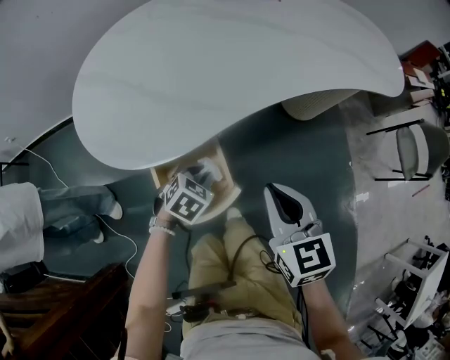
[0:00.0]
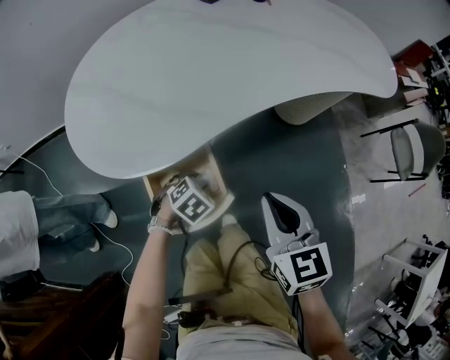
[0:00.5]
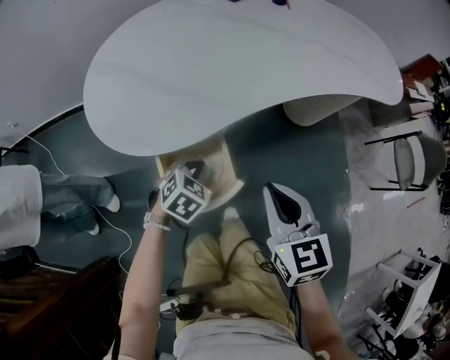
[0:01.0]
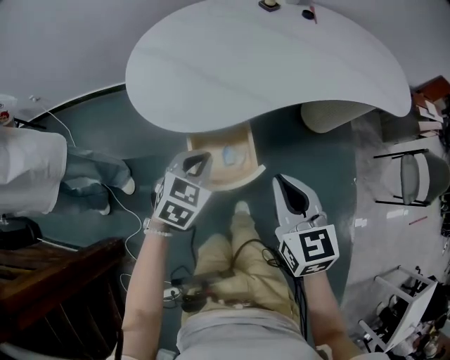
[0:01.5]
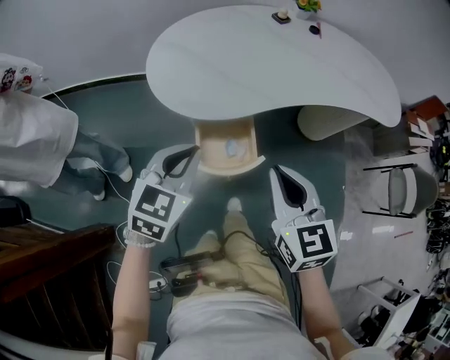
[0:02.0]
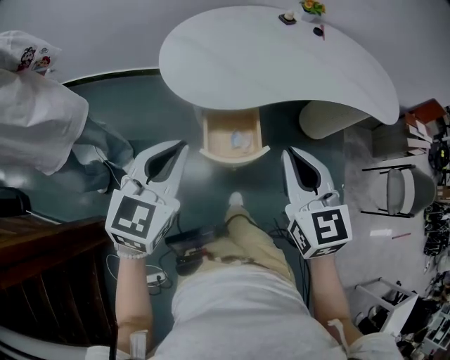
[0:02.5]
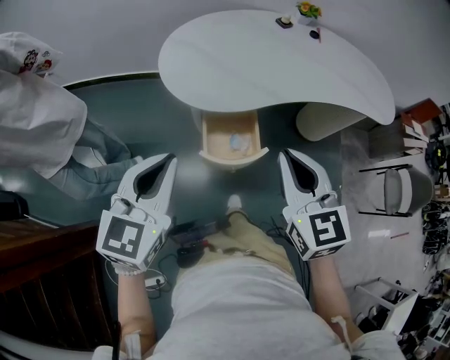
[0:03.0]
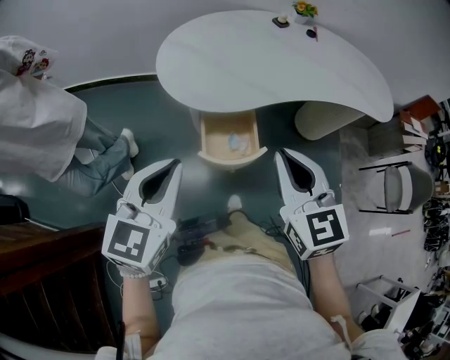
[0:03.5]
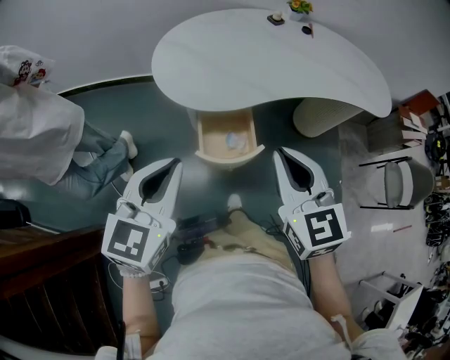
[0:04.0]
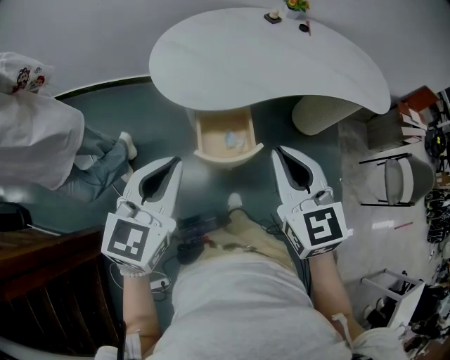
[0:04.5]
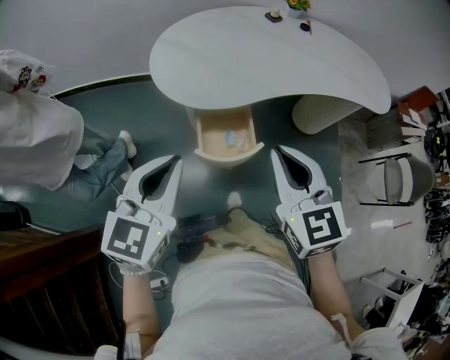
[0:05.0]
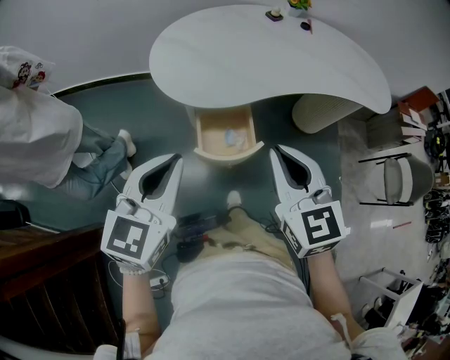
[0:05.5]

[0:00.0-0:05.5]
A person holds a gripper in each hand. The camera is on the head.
0:00.0 to 0:02.0: The right gripper is displaced upward, backward and to the left by roughly 20 cm, while the left gripper goes some 30 cm upward, and angles its fingers upward, by about 30 degrees.
0:02.0 to 0:03.5: The left gripper heads backward, upward and to the left, covering approximately 15 cm; the right gripper is displaced upward by approximately 5 cm.
0:03.5 to 0:05.5: The grippers stay close to where they were, moving slightly.

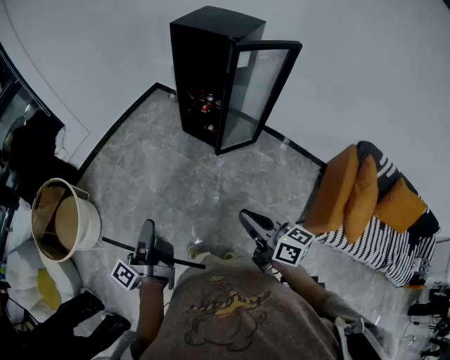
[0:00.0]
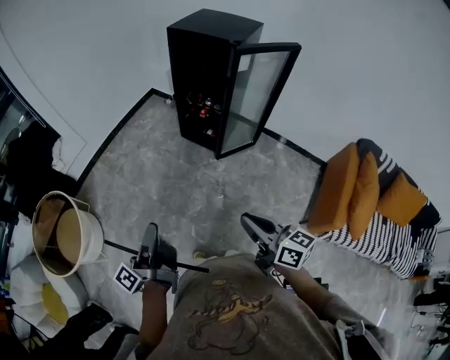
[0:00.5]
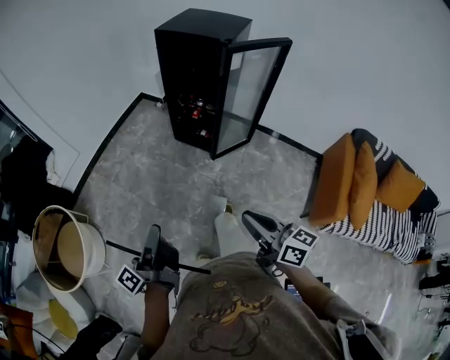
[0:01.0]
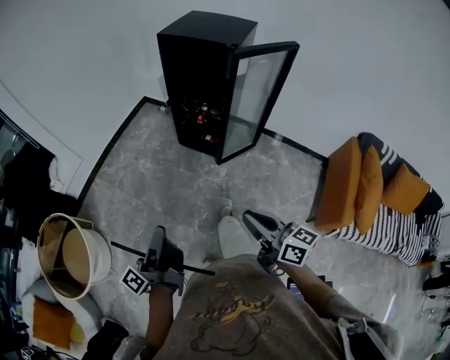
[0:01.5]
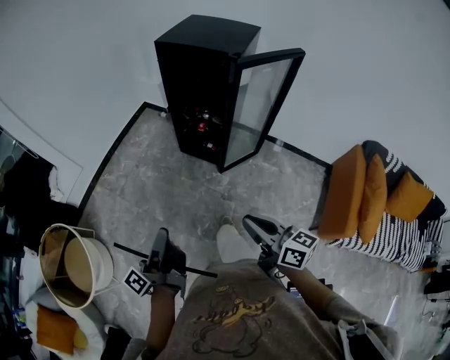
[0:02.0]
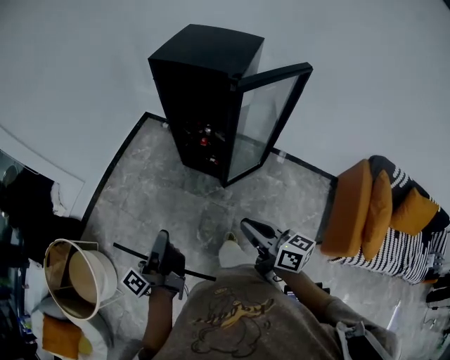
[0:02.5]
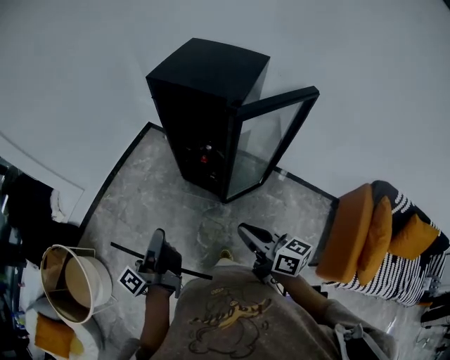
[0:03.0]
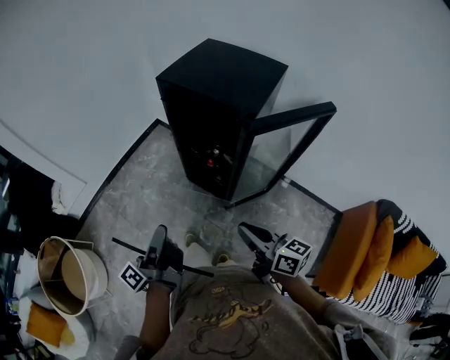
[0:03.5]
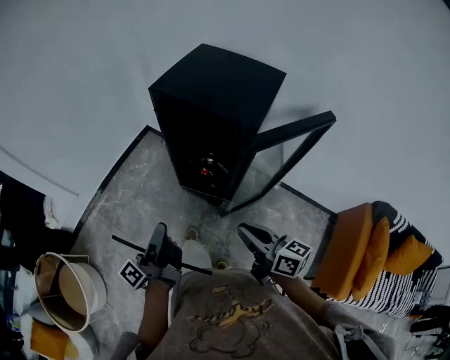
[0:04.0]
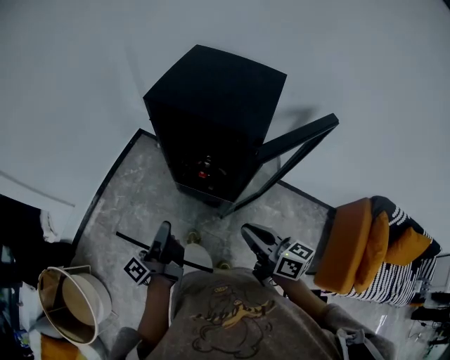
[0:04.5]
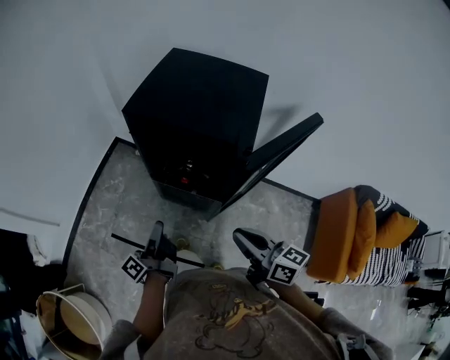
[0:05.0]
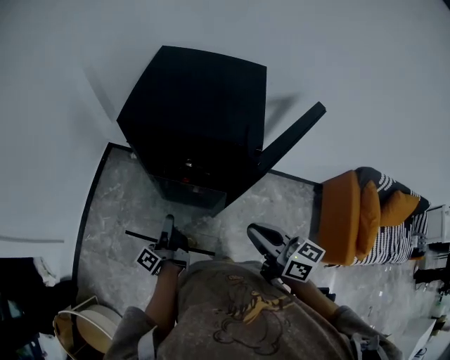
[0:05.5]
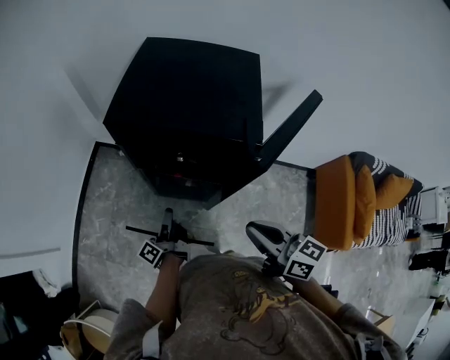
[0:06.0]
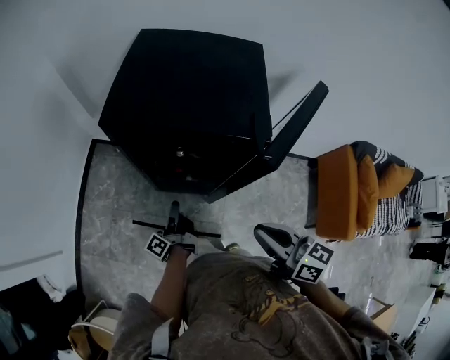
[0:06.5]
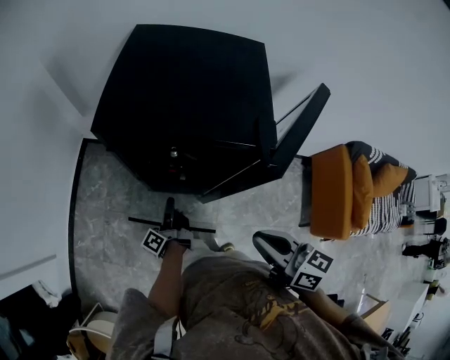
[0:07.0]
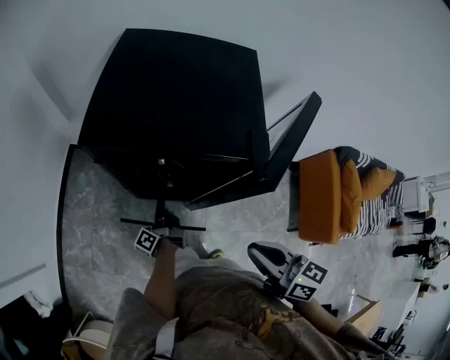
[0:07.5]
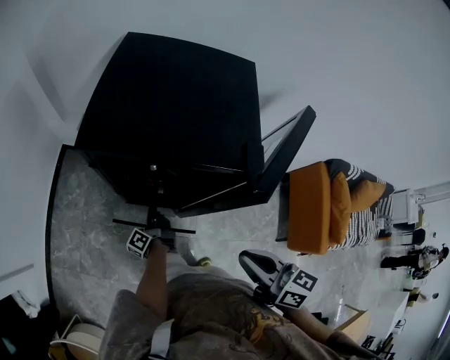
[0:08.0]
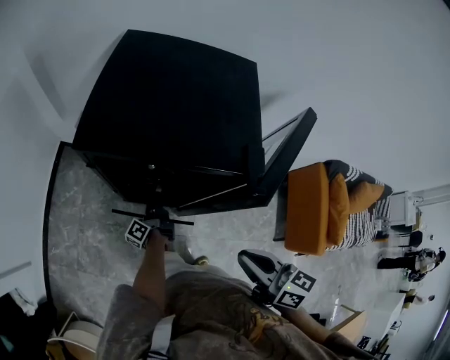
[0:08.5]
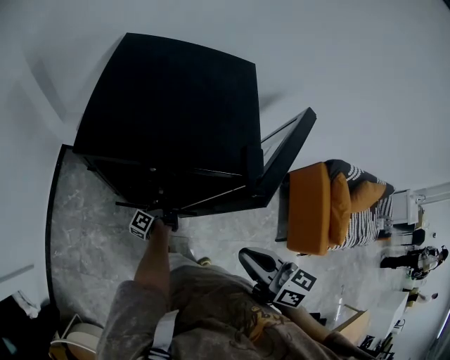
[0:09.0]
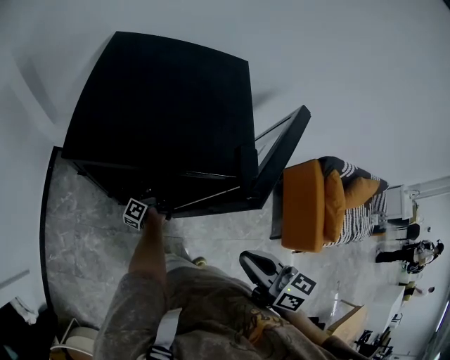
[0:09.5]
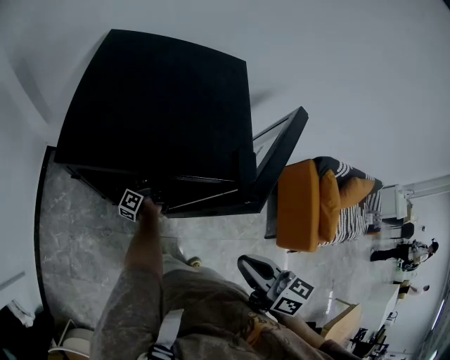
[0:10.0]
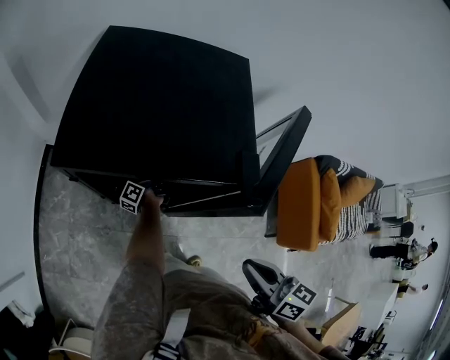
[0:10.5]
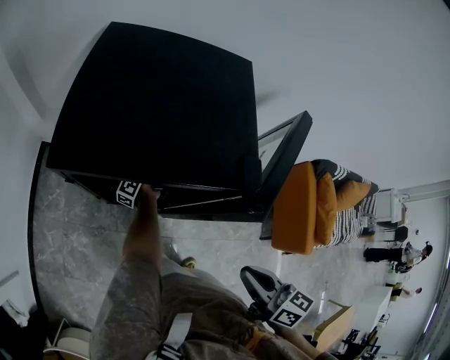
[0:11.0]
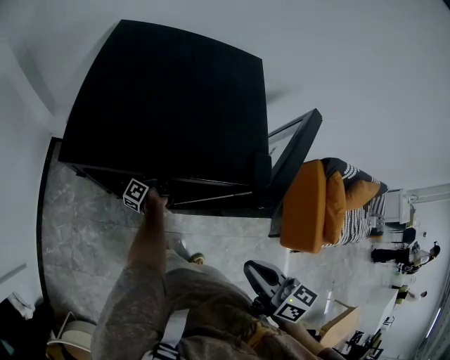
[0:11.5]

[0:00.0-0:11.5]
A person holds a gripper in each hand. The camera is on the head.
0:00.0 to 0:02.0: The right gripper shifts by approximately 15 cm.
0:02.0 to 0:04.0: The right gripper shifts by some 30 cm.
0:04.0 to 0:06.0: The right gripper shifts by approximately 10 cm, and rotates about 20 degrees.

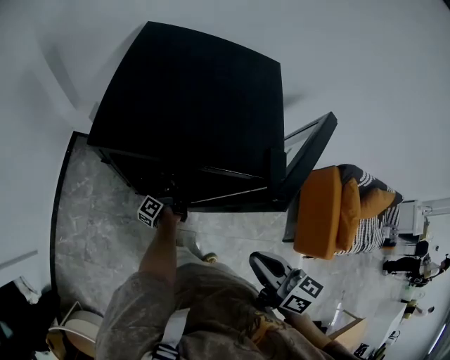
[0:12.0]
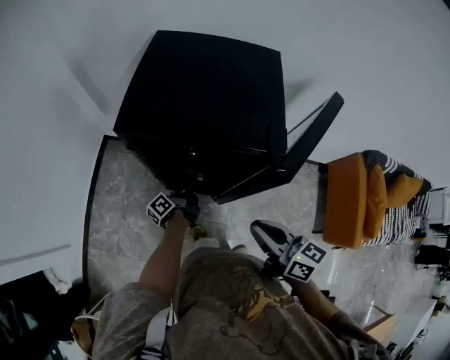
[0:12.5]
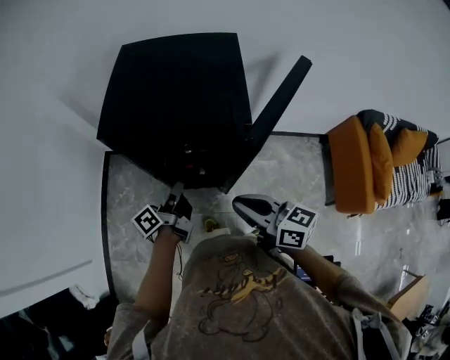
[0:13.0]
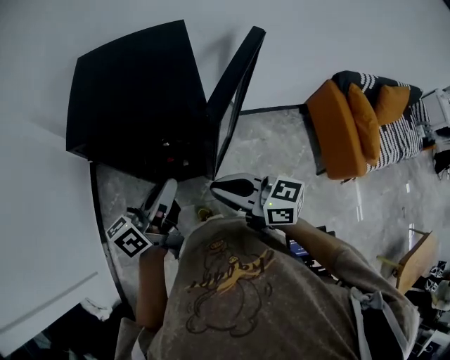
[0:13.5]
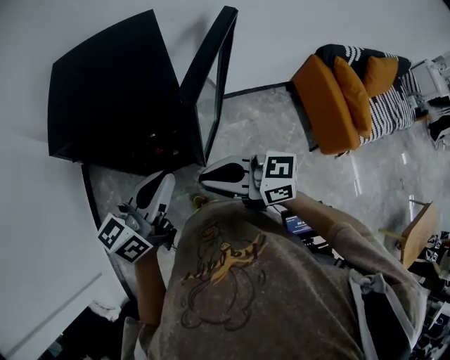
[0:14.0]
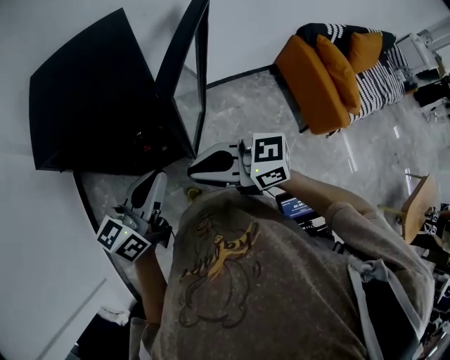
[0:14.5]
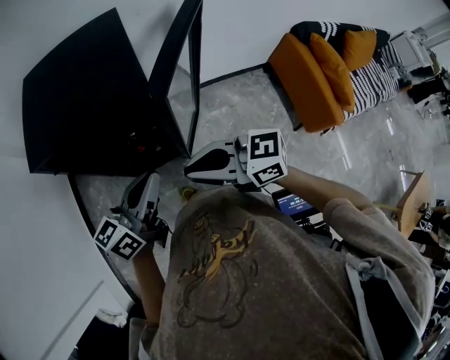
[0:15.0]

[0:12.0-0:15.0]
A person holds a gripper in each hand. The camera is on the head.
0:12.0 to 0:13.5: The right gripper changes its angle by approximately 20 degrees.

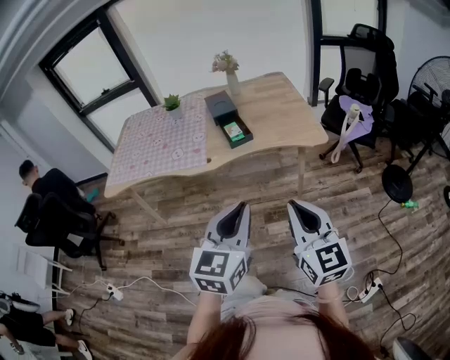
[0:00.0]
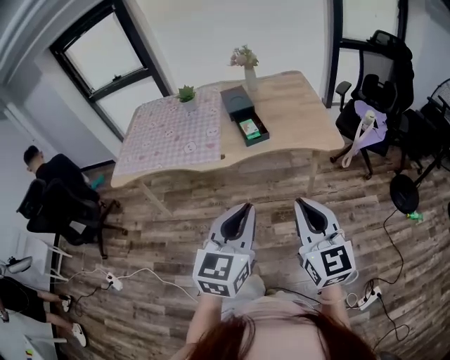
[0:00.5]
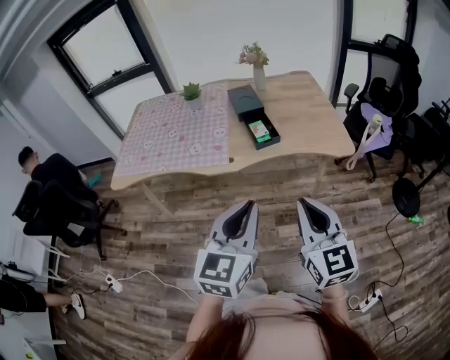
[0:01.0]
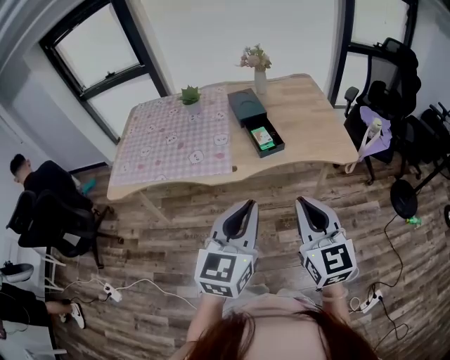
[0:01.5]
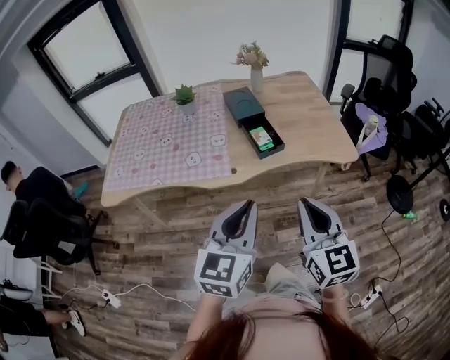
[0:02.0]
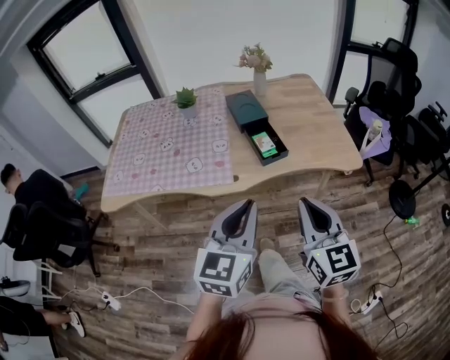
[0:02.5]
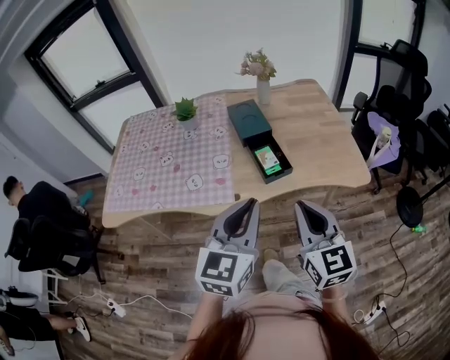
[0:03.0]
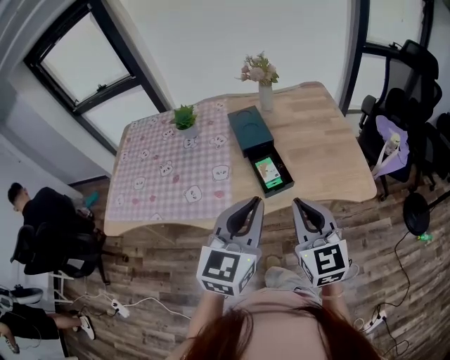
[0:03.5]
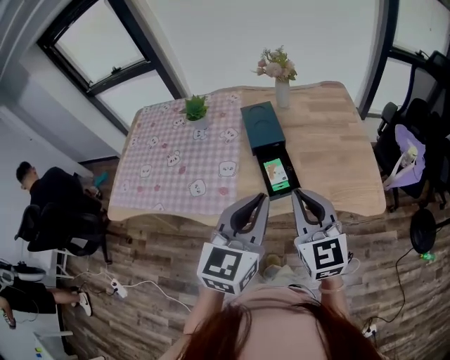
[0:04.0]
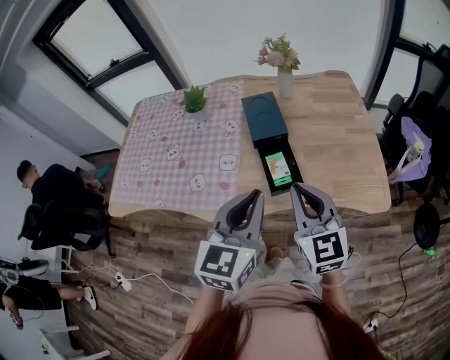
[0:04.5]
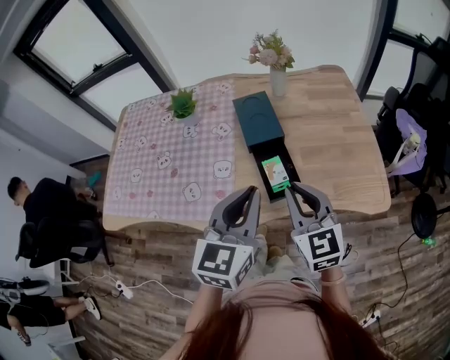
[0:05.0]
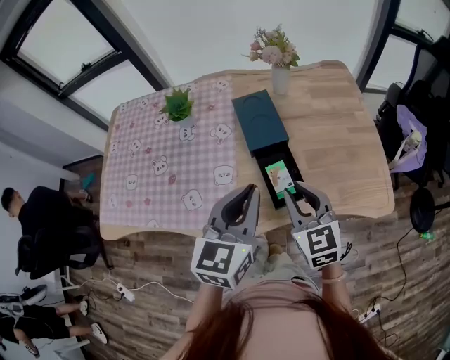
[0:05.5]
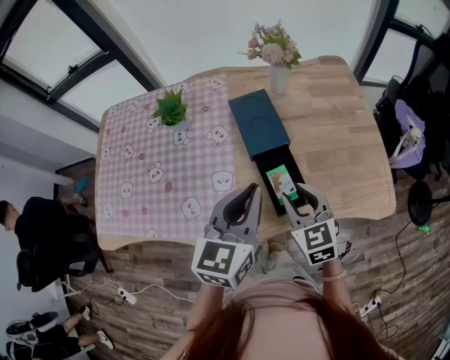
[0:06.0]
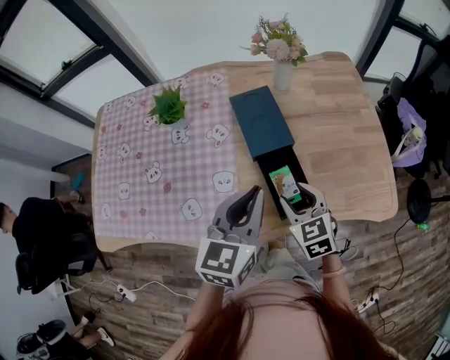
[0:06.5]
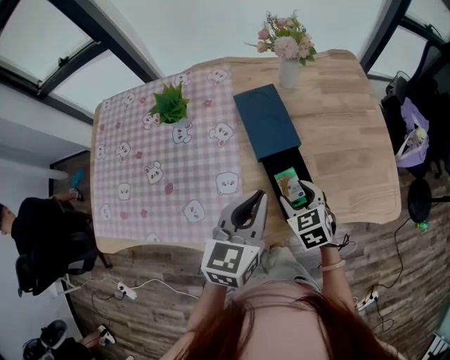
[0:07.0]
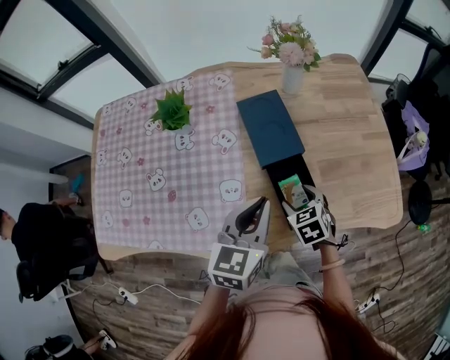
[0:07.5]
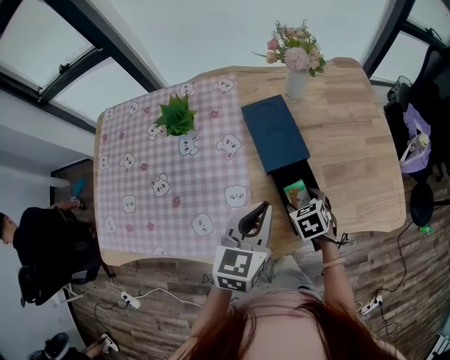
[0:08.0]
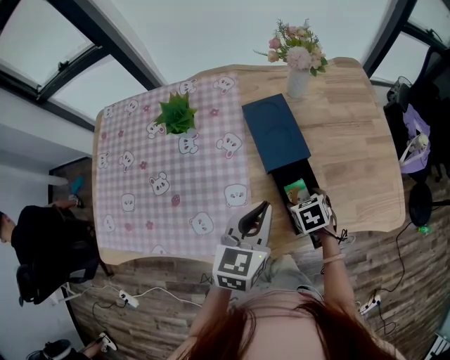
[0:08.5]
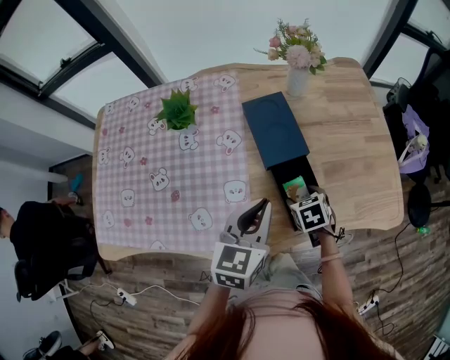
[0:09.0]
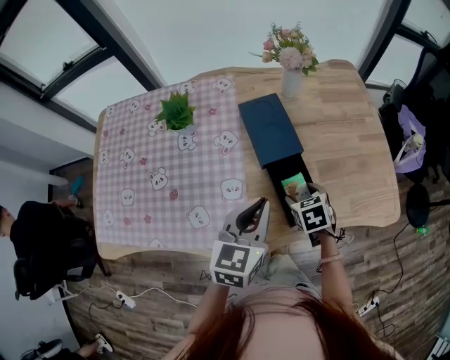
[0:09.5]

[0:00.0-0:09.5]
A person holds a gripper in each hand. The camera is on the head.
0:00.0 to 0:02.0: The right gripper shifts about 20 cm forward and to the left. Meanwhile the left gripper heads to the left and forward, covering about 20 cm.
0:02.0 to 0:04.0: The grippers both shift forward by some 25 cm.
0:04.0 to 0:05.5: The left gripper goes some 15 cm forward. The right gripper shifts some 15 cm forward and downward.
0:05.5 to 0:07.5: The right gripper shifts approximately 20 cm downward, tilts its fingers some 30 degrees downward, and opens; the left gripper travels downward and forward by some 10 cm.
0:07.5 to 0:09.5: The grippers stay close to where they were, moving slightly.
